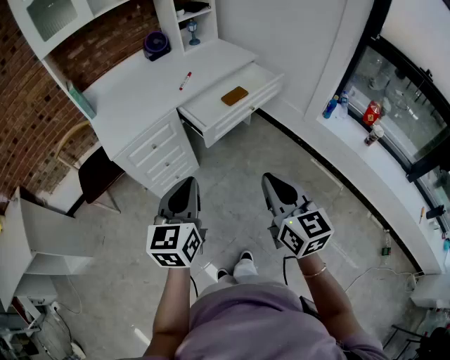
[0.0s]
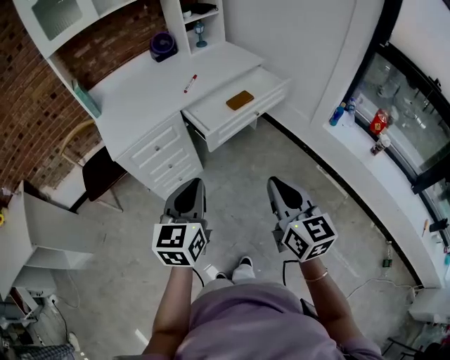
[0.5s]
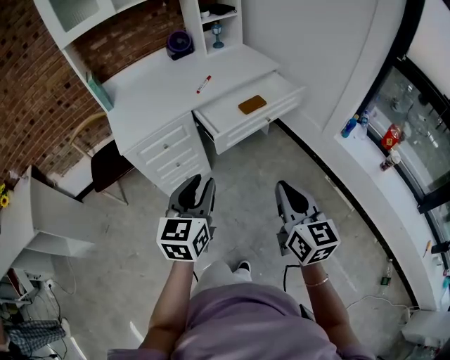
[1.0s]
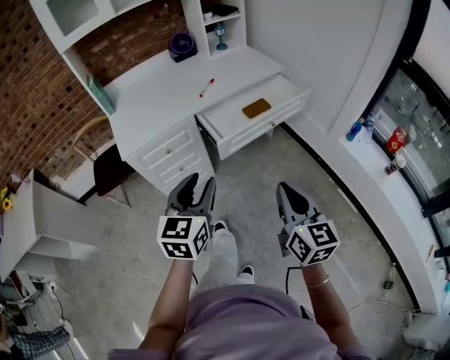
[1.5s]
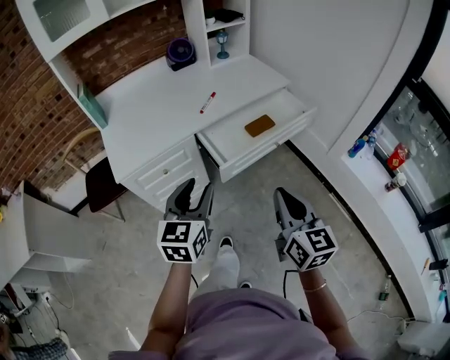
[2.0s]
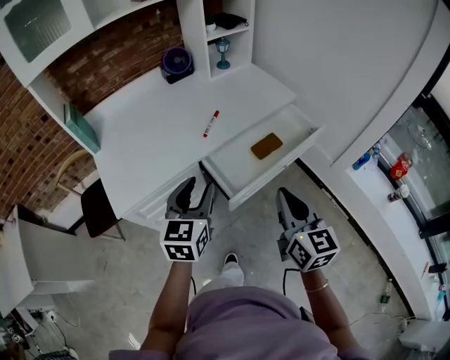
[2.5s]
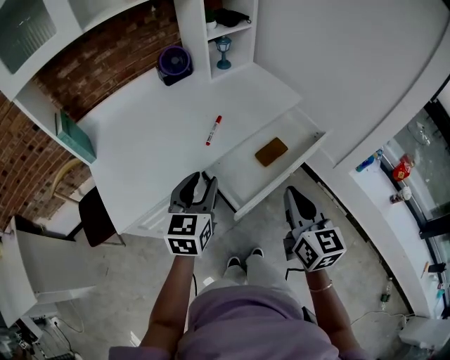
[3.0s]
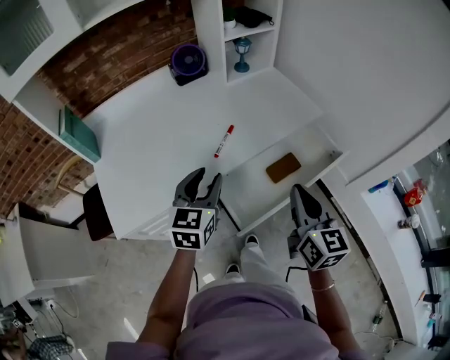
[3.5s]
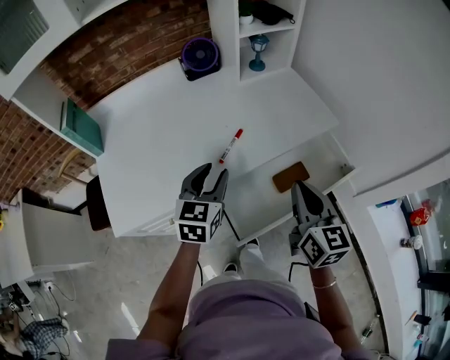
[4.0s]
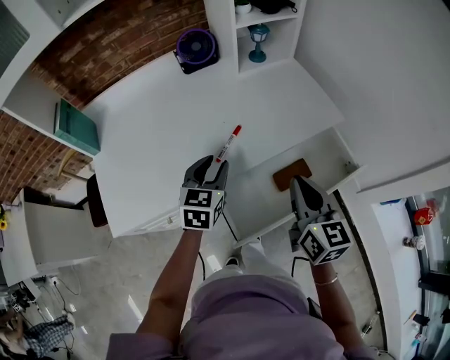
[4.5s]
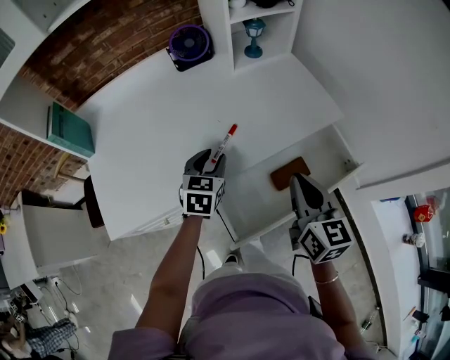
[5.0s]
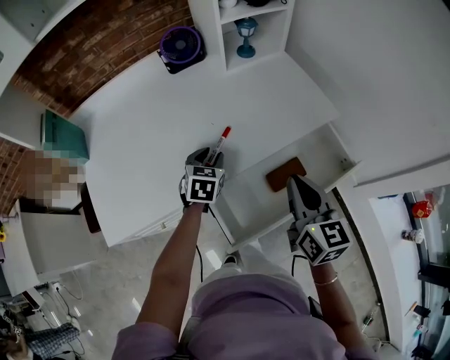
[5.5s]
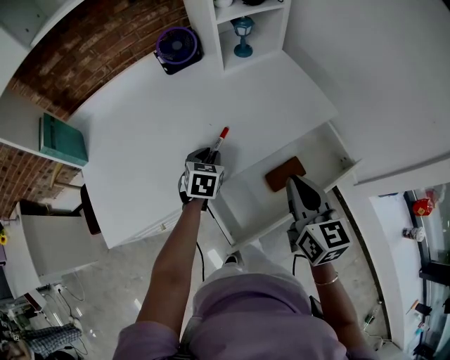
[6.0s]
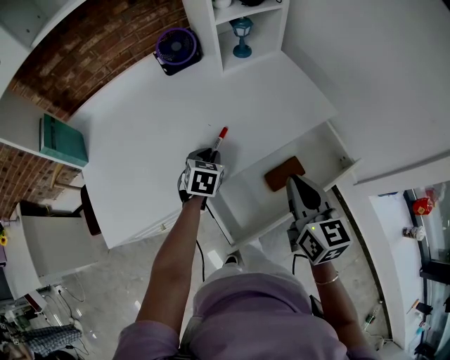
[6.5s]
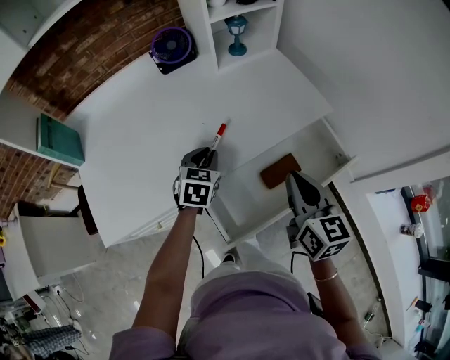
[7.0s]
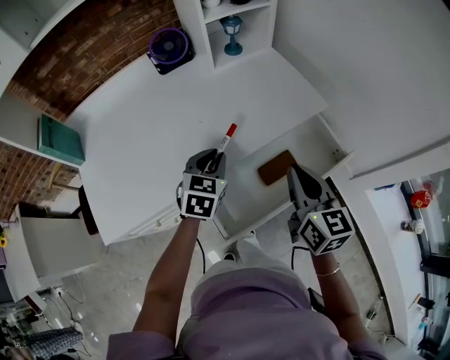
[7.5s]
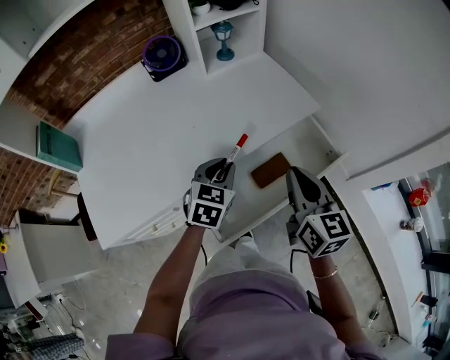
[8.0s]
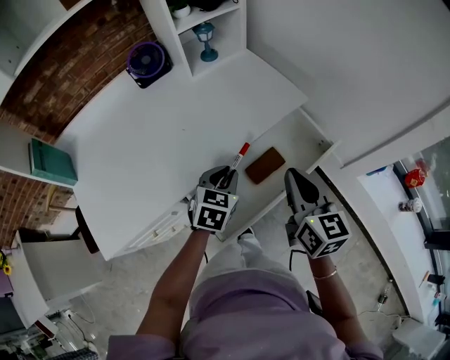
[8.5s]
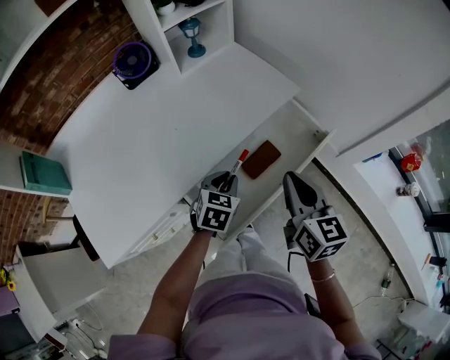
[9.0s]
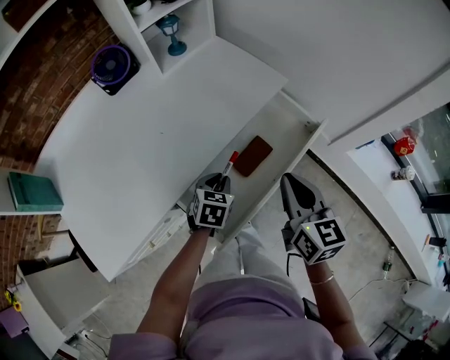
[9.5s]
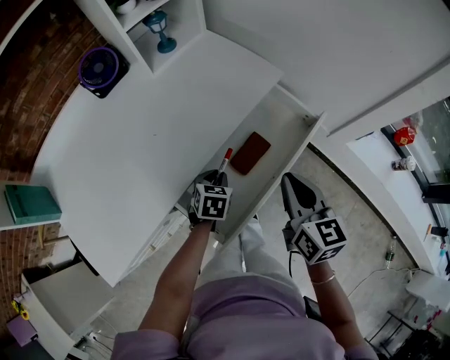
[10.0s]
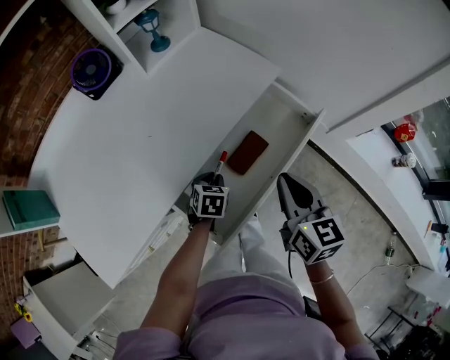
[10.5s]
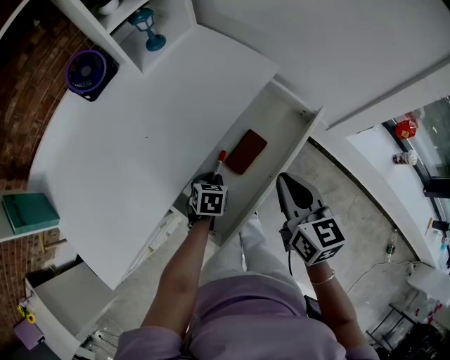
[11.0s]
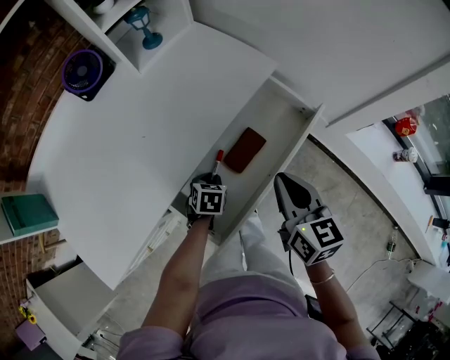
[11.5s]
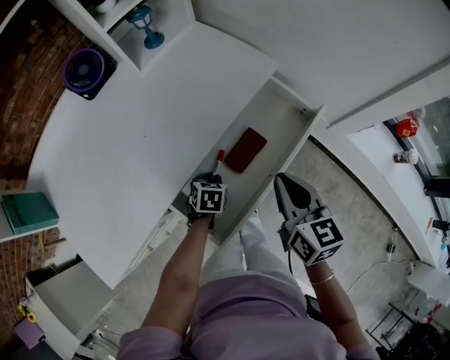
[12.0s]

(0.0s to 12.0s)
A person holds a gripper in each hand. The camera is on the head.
0.0s - 2.0s: Both grippers travel together forward, roughly 15 cm. The left gripper opens.
2.0s - 4.0s: The two grippers go approximately 35 cm forward.
4.0s - 6.0s: The right gripper moves about 5 cm; the left gripper heads downward and forward, covering about 20 cm, and swivels some 20 degrees.
6.0s - 8.0s: The left gripper heads to the right, upward and backward, covering some 15 cm, while the right gripper shifts by roughly 5 cm.
8.0s - 10.0s: The left gripper is displaced downward by some 15 cm, and rotates about 20 degrees. The right gripper ends up approximately 5 cm from where it was.
10.0s - 12.0s: The left gripper shifts approximately 5 cm downward.

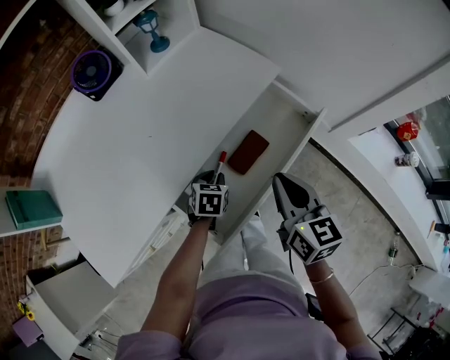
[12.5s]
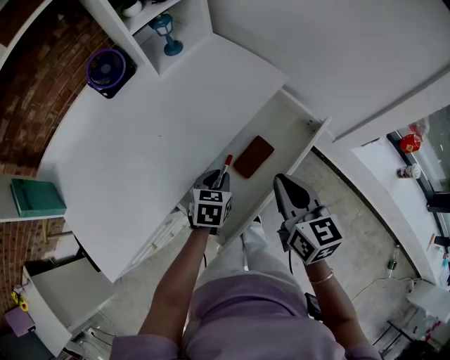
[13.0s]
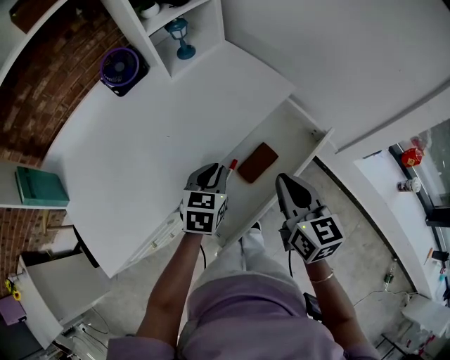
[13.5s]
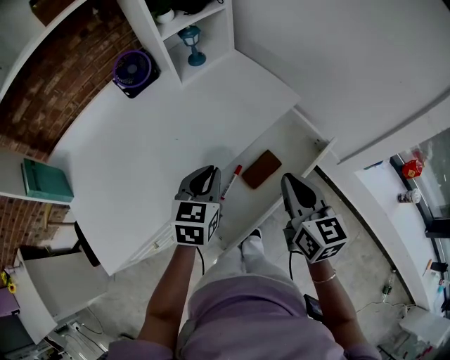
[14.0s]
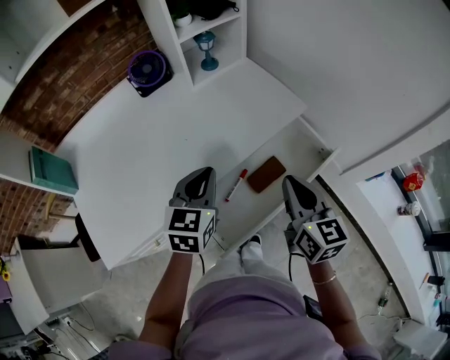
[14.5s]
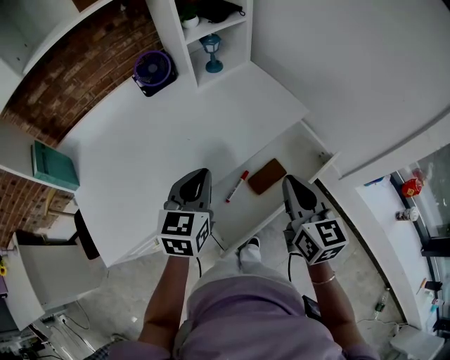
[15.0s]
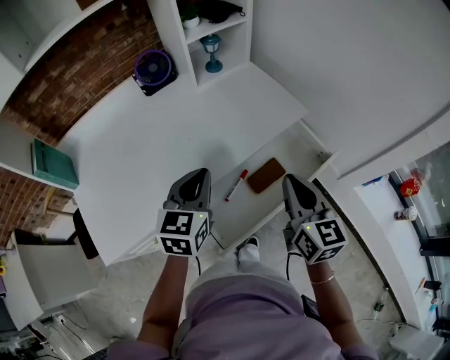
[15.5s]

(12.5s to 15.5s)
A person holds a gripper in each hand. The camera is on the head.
12.5s - 14.0s: The right gripper ends up some 5 cm from where it was. The left gripper goes about 20 cm upward, and rotates about 30 degrees.
14.0s - 15.5s: The left gripper shifts some 5 cm upward.

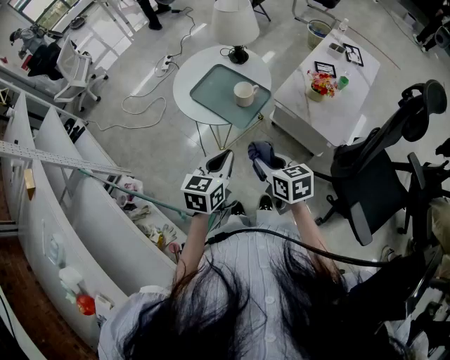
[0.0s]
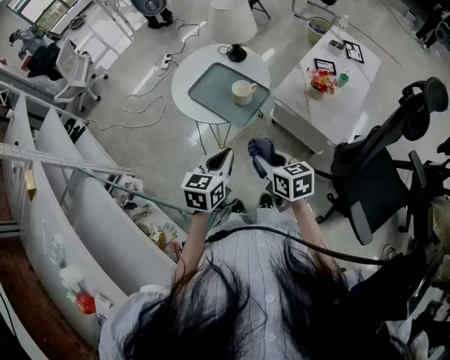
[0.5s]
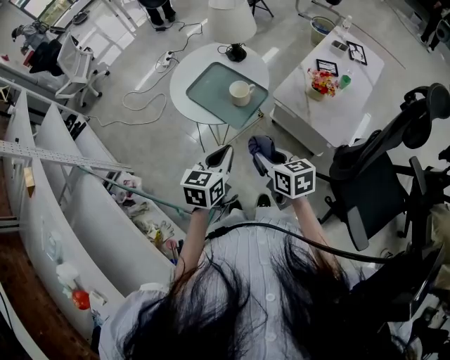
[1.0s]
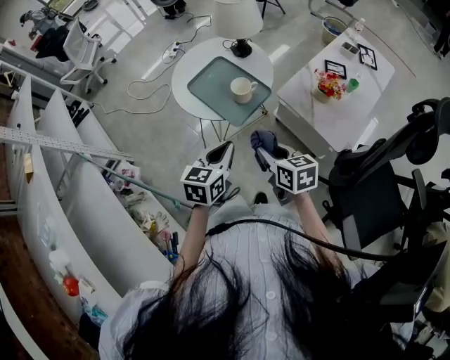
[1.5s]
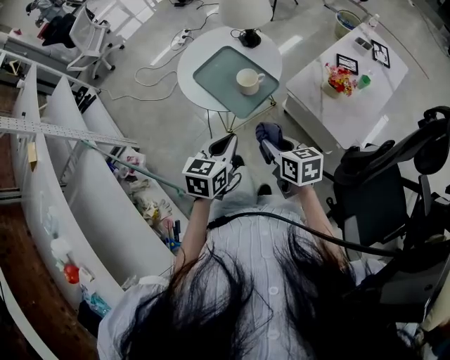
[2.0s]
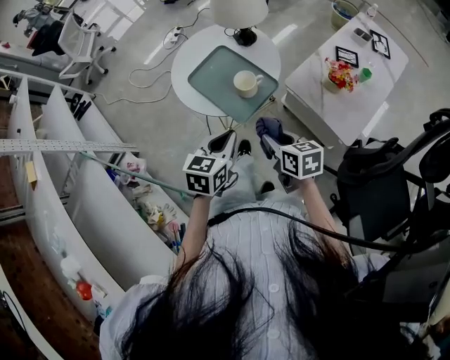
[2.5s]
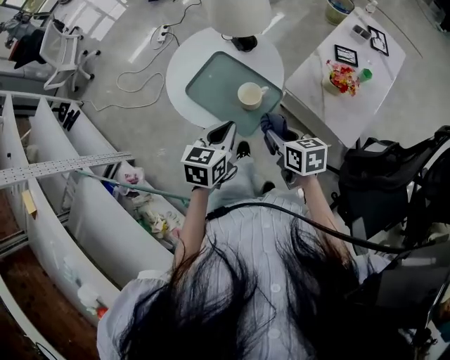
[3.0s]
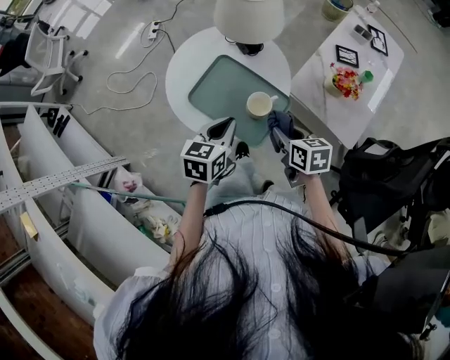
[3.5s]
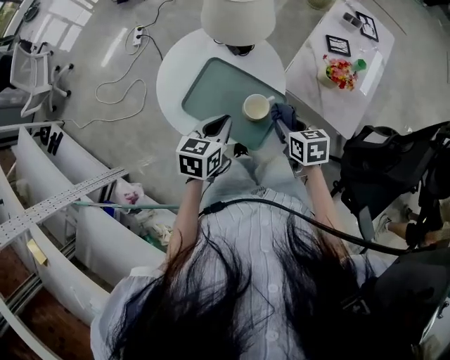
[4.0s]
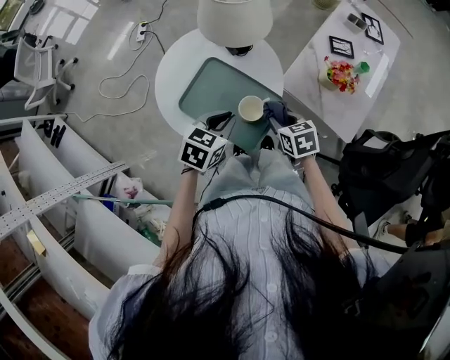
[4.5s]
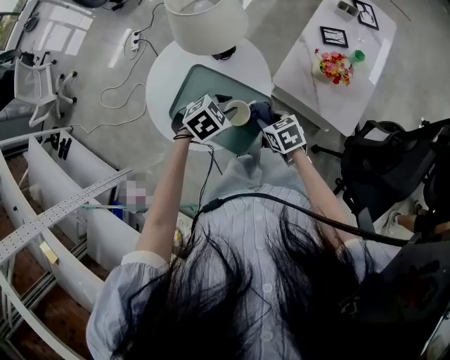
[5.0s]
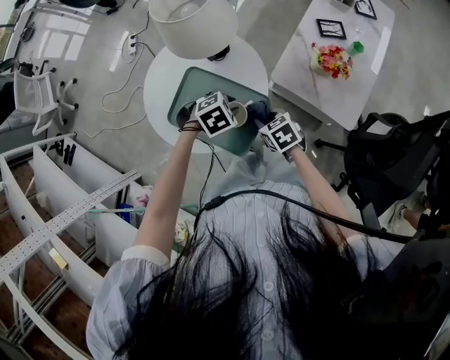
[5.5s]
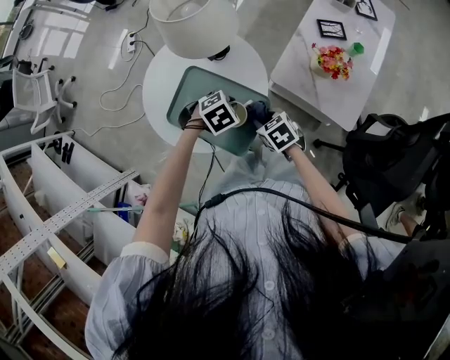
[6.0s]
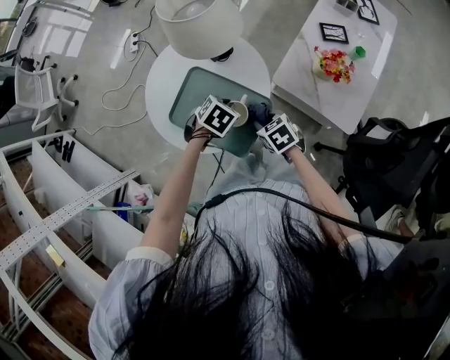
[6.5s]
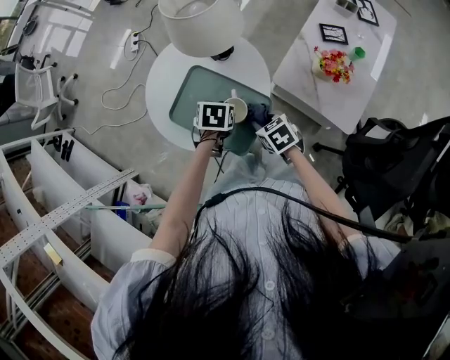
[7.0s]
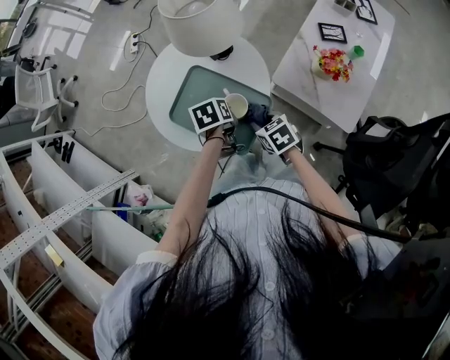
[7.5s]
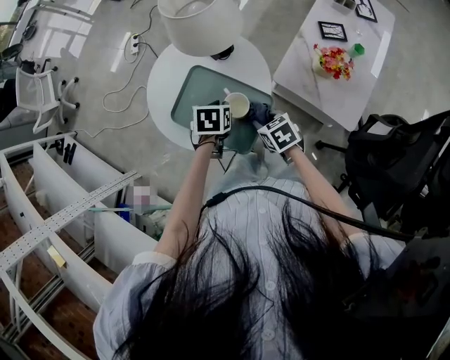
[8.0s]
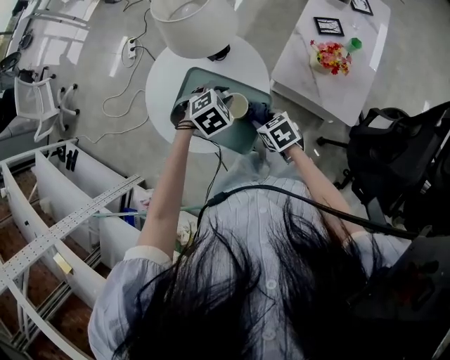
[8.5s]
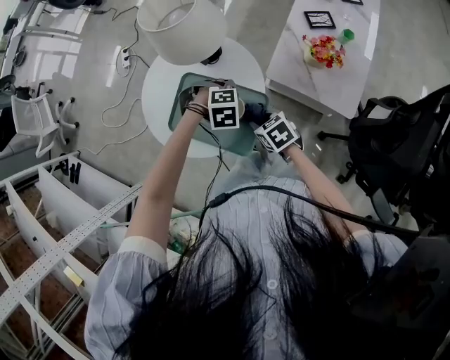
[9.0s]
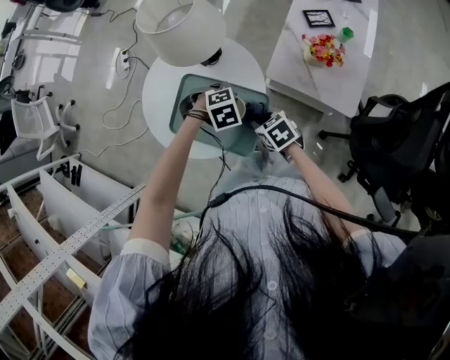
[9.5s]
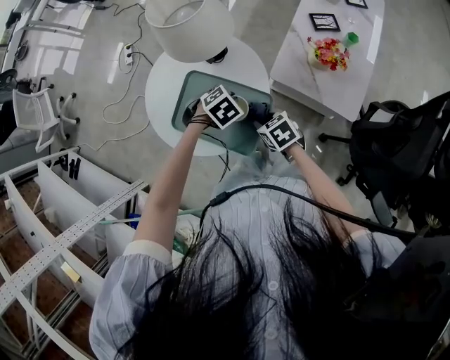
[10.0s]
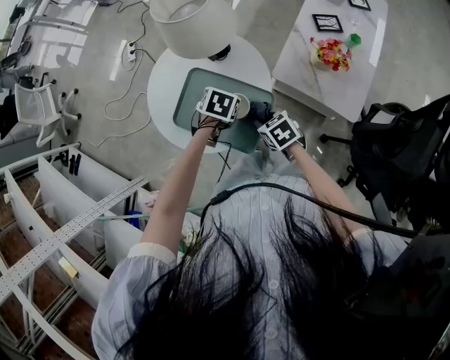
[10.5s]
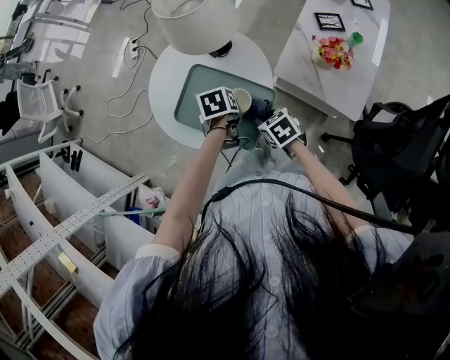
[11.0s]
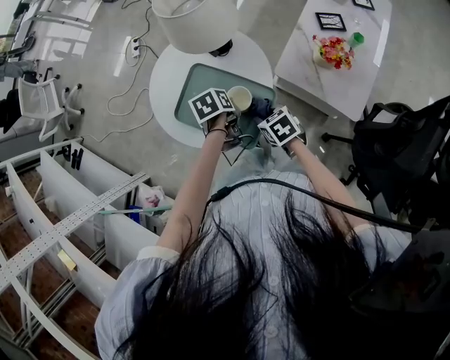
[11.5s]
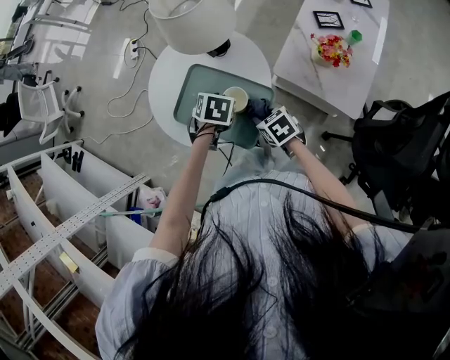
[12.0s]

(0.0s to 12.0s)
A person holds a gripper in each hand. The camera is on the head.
0.0s - 2.0s: The left gripper shifts by approximately 5 cm, while the right gripper goes about 10 cm forward and to the right.
2.0s - 4.0s: Both grippers move forward, roughly 20 cm. The right gripper changes its angle by approximately 20 degrees.
4.0s - 6.0s: The right gripper heads downward, covering about 5 cm, and changes its angle by some 20 degrees. The left gripper ends up some 15 cm from where it was, and tips its fingers downward by roughly 40 degrees.
6.0s - 8.0s: The left gripper shifts by roughly 5 cm, and twists about 60 degrees counterclockwise, seen from behind.
8.0s - 10.0s: The left gripper changes place by roughly 5 cm, and twists approximately 50 degrees clockwise, seen from behind.
10.0s - 12.0s: The left gripper is displaced to the left by about 5 cm, and swivels some 40 degrees.
